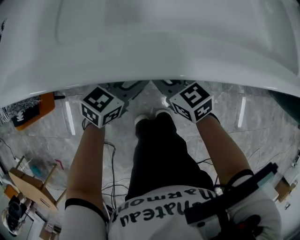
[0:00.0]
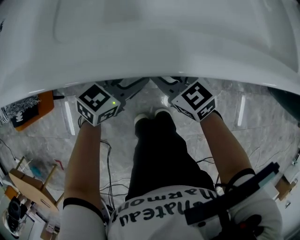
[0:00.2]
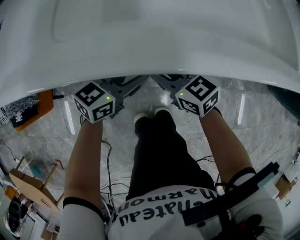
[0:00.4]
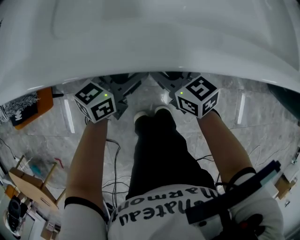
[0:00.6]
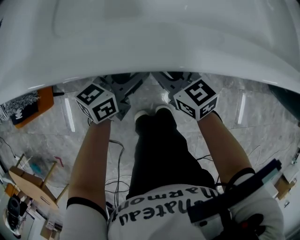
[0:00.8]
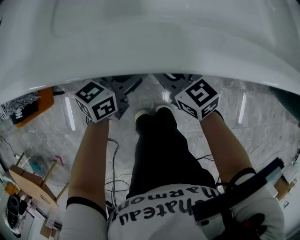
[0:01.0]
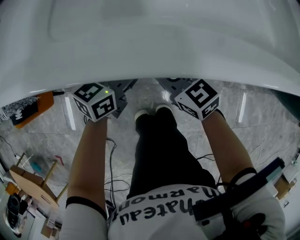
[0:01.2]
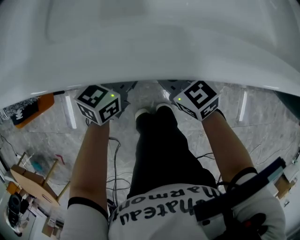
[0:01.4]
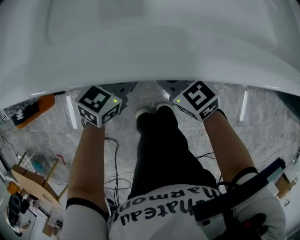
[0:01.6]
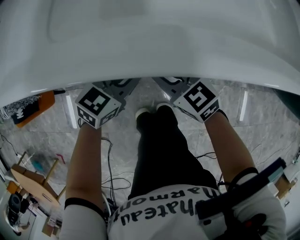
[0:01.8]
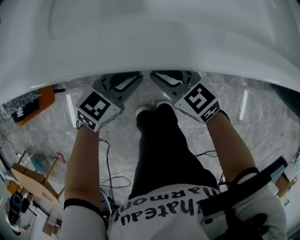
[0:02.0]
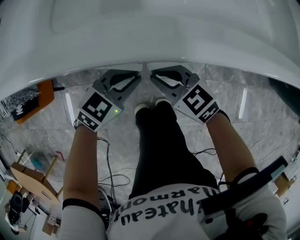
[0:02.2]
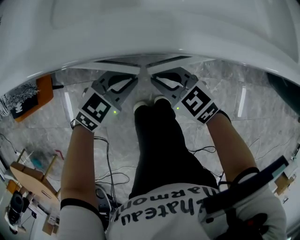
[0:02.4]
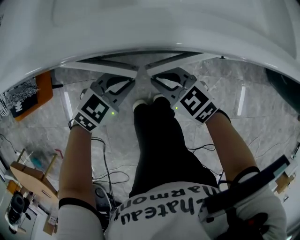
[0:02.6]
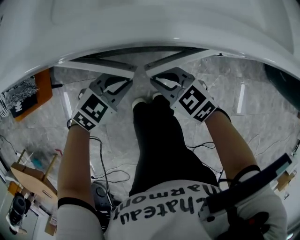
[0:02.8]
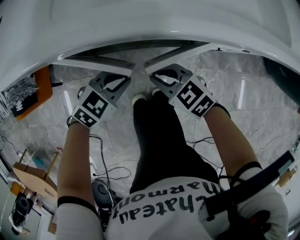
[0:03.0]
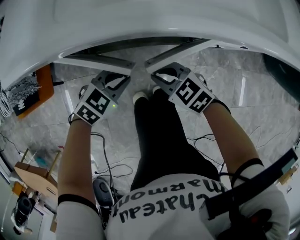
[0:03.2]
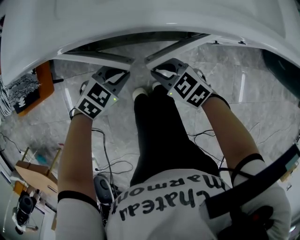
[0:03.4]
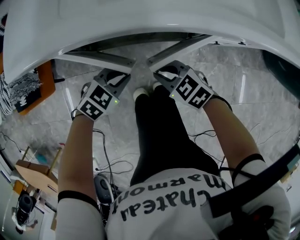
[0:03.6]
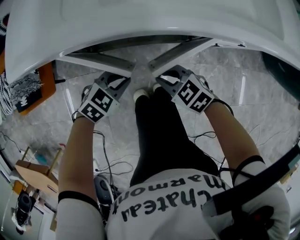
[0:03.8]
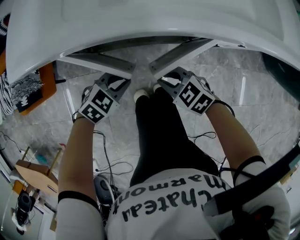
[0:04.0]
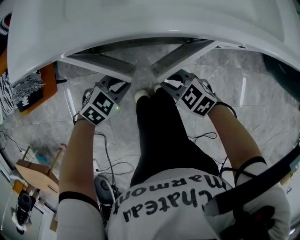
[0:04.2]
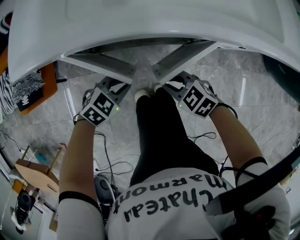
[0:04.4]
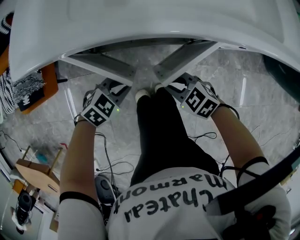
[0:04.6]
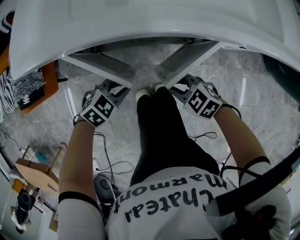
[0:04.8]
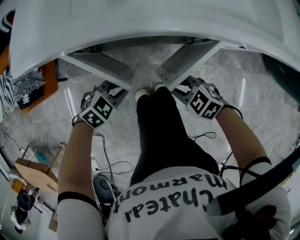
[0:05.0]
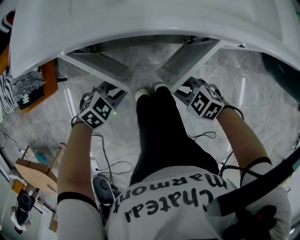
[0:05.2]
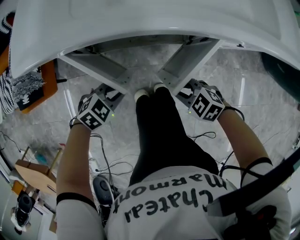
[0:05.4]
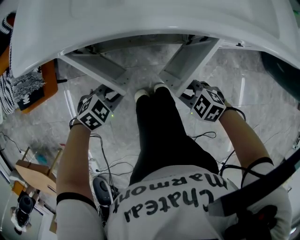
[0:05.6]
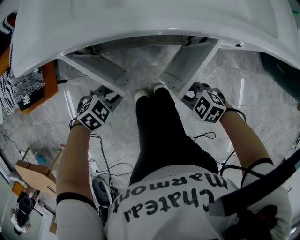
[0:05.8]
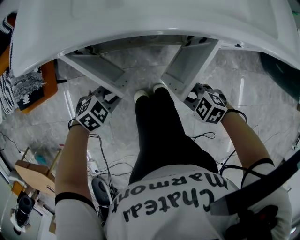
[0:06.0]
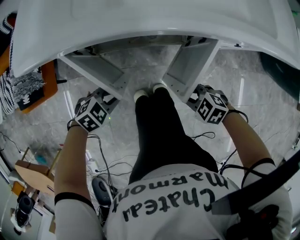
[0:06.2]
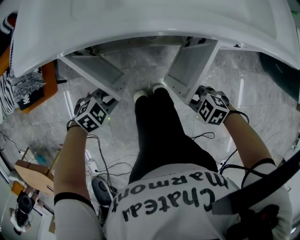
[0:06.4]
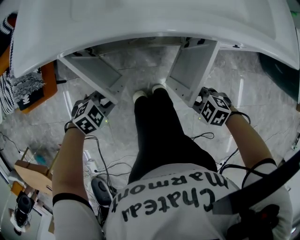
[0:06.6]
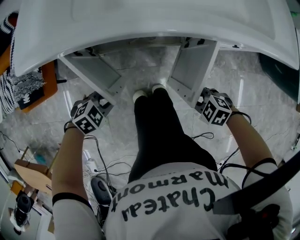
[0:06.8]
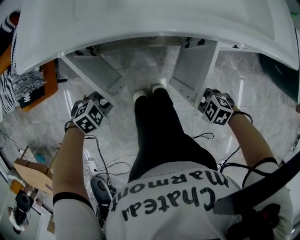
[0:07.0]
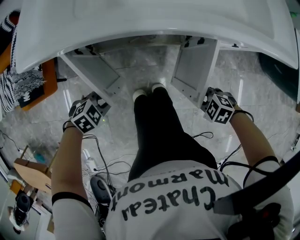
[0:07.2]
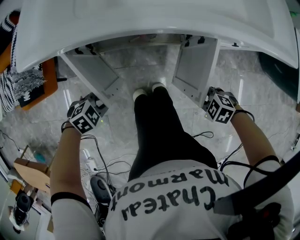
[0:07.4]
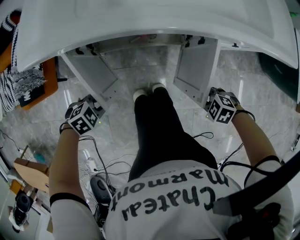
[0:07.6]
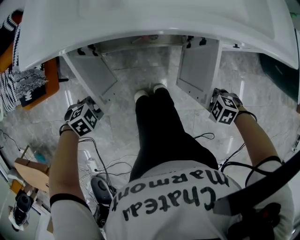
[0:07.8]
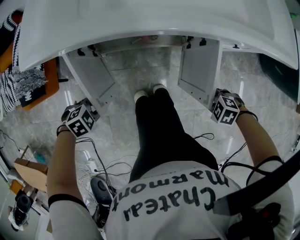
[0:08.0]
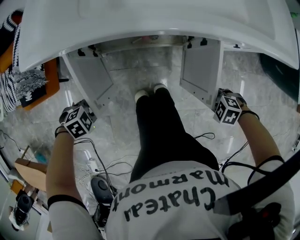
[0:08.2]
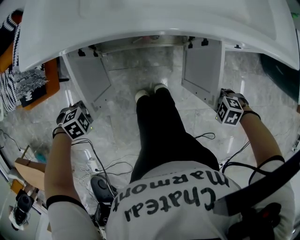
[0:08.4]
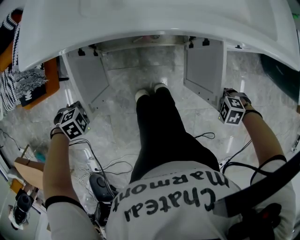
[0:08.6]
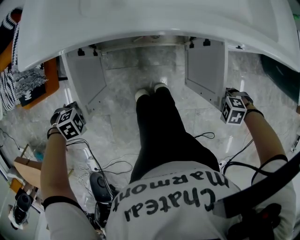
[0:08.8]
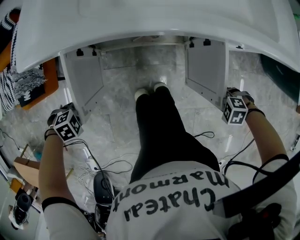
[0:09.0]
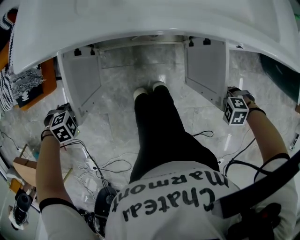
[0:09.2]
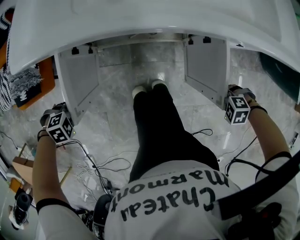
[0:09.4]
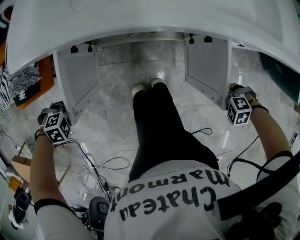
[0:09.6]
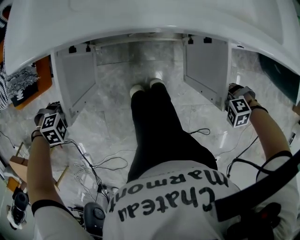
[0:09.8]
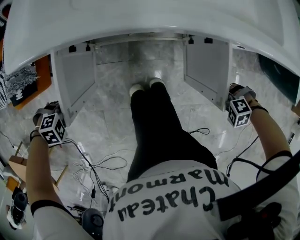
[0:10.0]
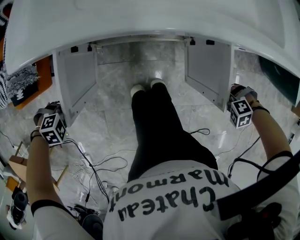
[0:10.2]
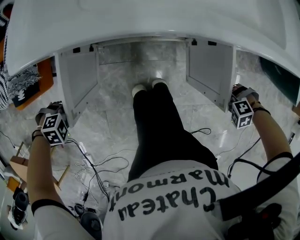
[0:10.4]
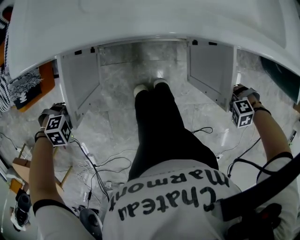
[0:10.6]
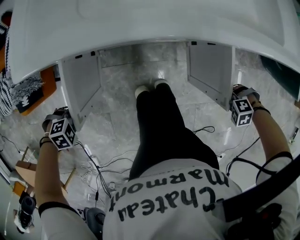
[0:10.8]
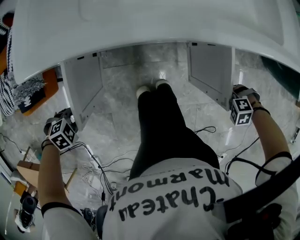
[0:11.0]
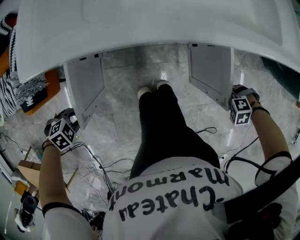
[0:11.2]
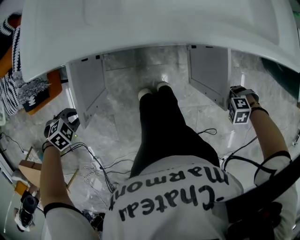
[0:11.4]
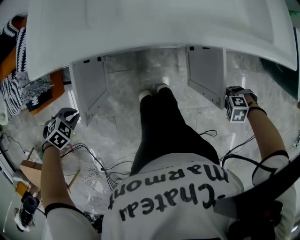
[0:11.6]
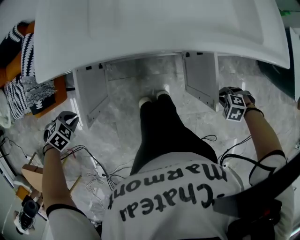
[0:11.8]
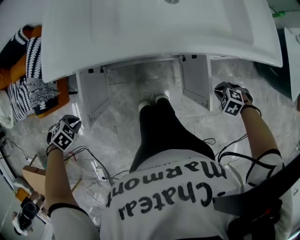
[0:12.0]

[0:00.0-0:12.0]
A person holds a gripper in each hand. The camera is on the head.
0:00.0 to 0:01.6: The left gripper closes up.
0:01.6 to 0:03.0: The left gripper changes place by roughly 10 cm, and changes its angle by roughly 30 degrees, while the right gripper ends up approximately 10 cm from where it was.
0:03.0 to 0:04.4: The right gripper changes place by about 5 cm.
0:04.4 to 0:06.0: The right gripper ends up some 10 cm from where it was. Meanwhile the left gripper moves roughly 5 cm.
0:06.0 to 0:07.6: The left gripper changes place by about 10 cm. Meanwhile the right gripper ends up some 10 cm from where it was.
0:07.6 to 0:09.0: The right gripper shifts by some 5 cm; the left gripper ends up approximately 10 cm from where it was.
0:09.0 to 0:10.4: The right gripper rotates some 20 degrees.
0:10.4 to 0:12.0: The right gripper changes place by approximately 10 cm, and swivels approximately 40 degrees. The left gripper travels upward by about 10 cm, and rotates about 30 degrees.

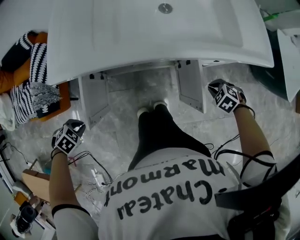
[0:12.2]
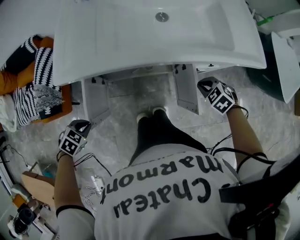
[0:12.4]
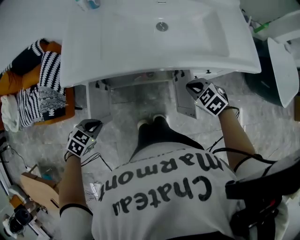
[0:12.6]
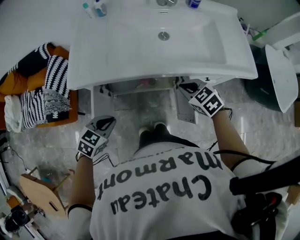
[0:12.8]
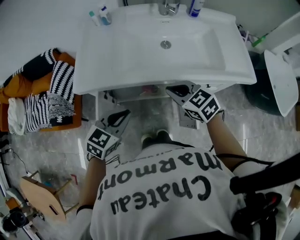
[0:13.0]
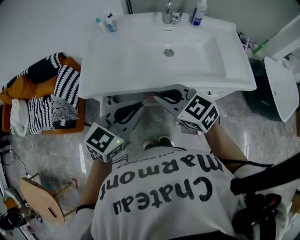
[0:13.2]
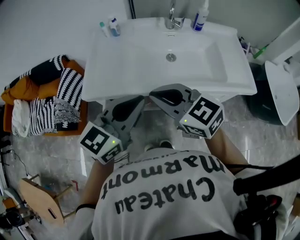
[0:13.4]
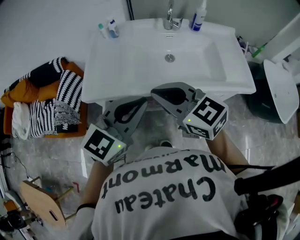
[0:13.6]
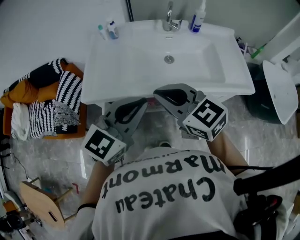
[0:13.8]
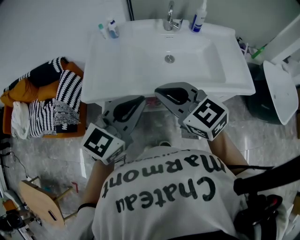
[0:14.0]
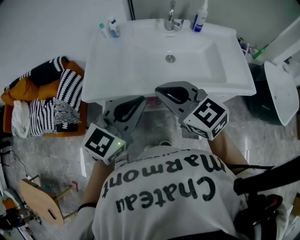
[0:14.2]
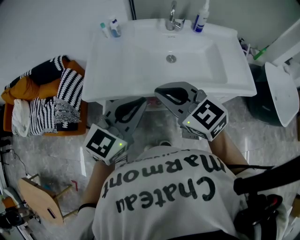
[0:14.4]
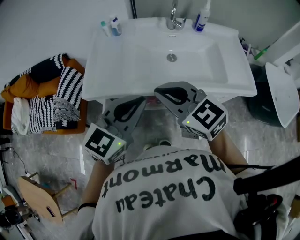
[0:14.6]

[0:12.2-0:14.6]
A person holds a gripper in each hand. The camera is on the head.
0:12.2 to 0:13.4: Both grippers travel together upward, approximately 35 cm. The right gripper tilts its fingers about 60 degrees upward. Meanwhile the left gripper points its fingers about 80 degrees further upward.
0:13.4 to 0:14.6: The grippers move only a little.

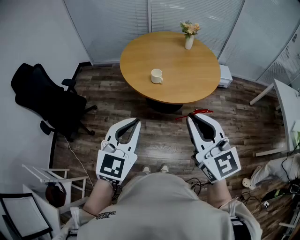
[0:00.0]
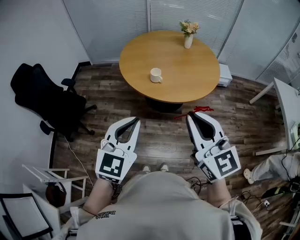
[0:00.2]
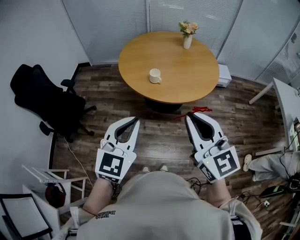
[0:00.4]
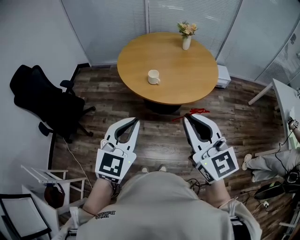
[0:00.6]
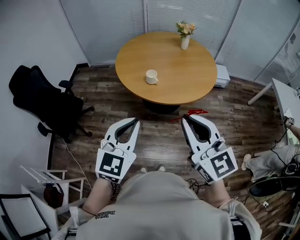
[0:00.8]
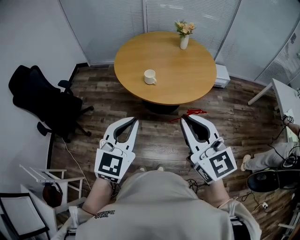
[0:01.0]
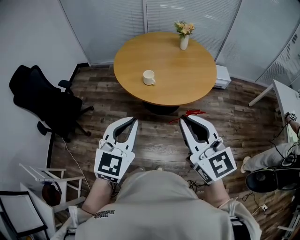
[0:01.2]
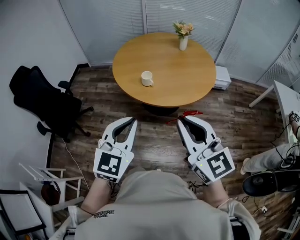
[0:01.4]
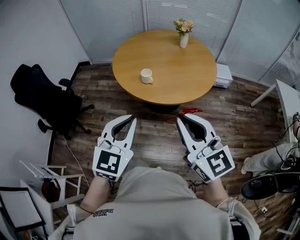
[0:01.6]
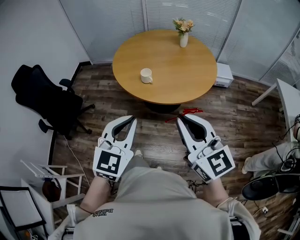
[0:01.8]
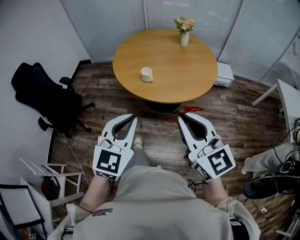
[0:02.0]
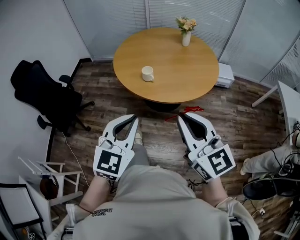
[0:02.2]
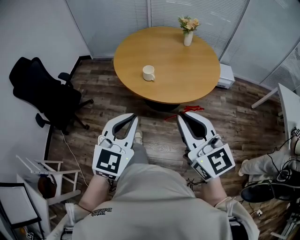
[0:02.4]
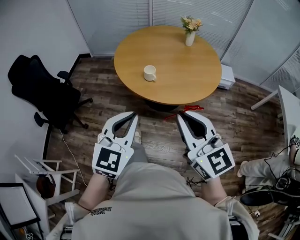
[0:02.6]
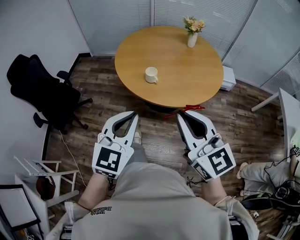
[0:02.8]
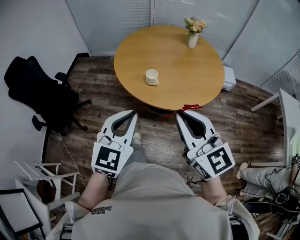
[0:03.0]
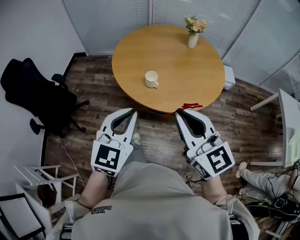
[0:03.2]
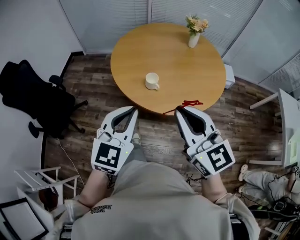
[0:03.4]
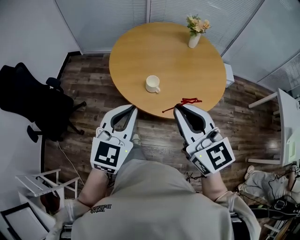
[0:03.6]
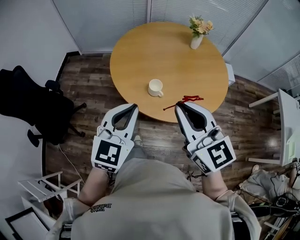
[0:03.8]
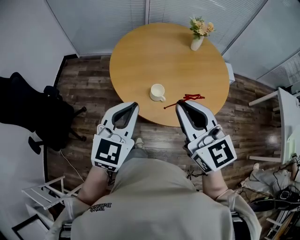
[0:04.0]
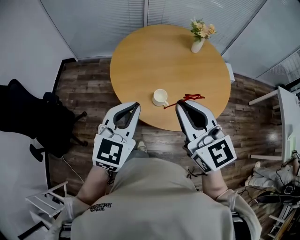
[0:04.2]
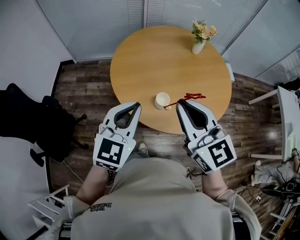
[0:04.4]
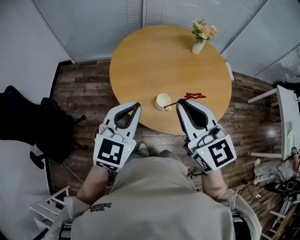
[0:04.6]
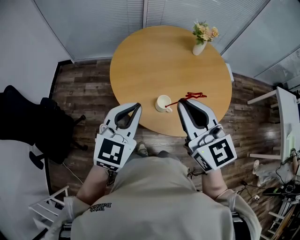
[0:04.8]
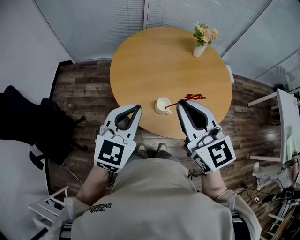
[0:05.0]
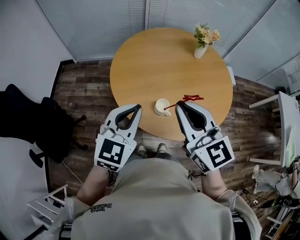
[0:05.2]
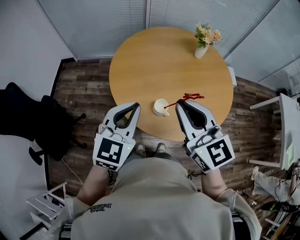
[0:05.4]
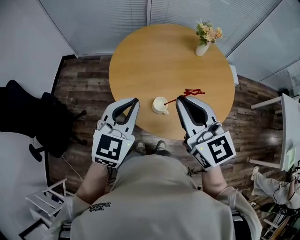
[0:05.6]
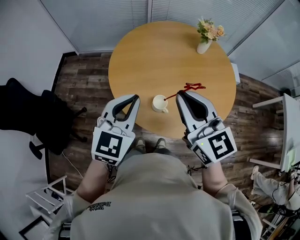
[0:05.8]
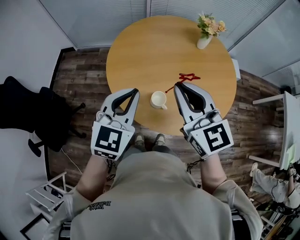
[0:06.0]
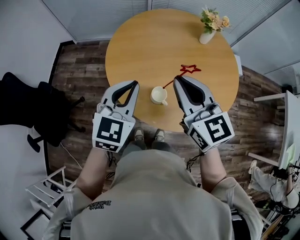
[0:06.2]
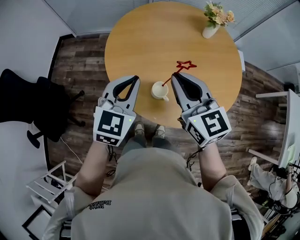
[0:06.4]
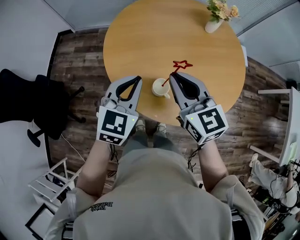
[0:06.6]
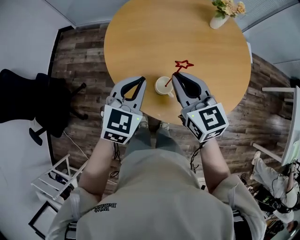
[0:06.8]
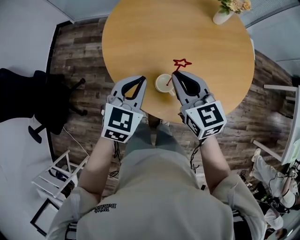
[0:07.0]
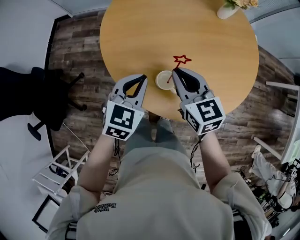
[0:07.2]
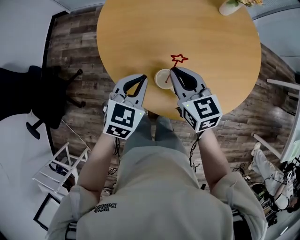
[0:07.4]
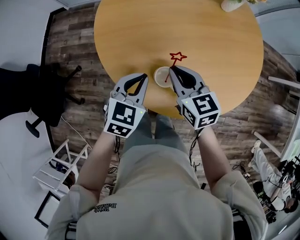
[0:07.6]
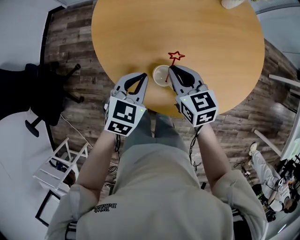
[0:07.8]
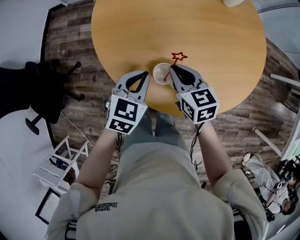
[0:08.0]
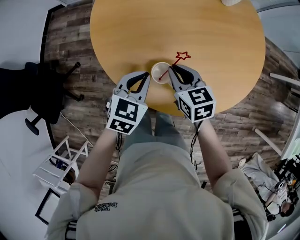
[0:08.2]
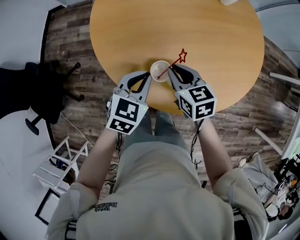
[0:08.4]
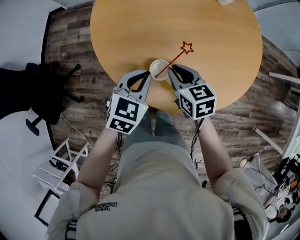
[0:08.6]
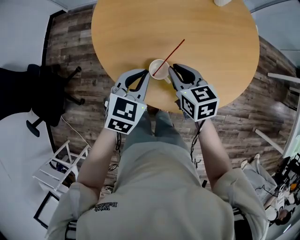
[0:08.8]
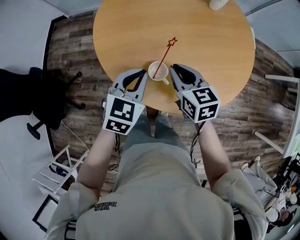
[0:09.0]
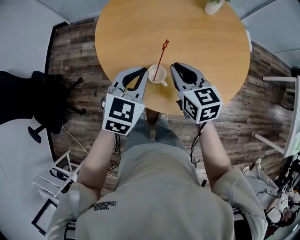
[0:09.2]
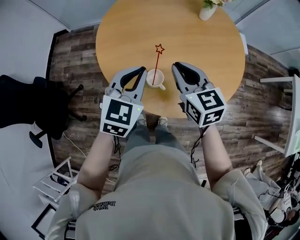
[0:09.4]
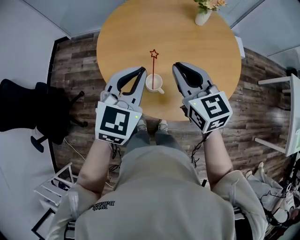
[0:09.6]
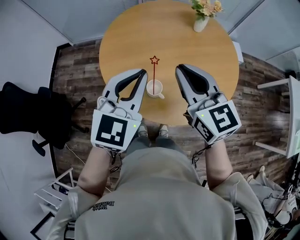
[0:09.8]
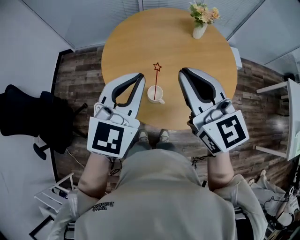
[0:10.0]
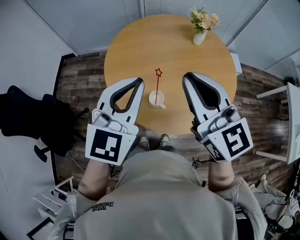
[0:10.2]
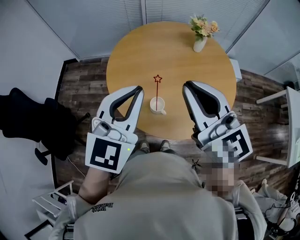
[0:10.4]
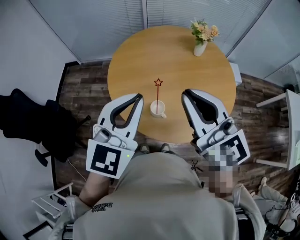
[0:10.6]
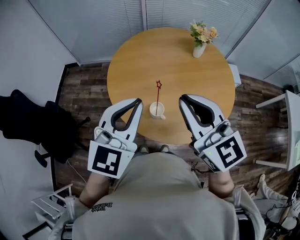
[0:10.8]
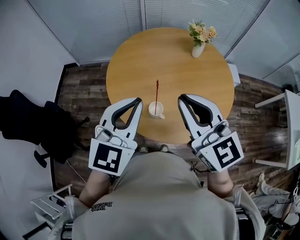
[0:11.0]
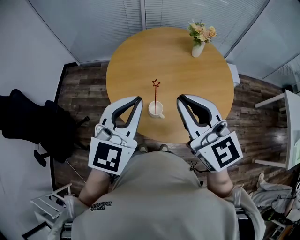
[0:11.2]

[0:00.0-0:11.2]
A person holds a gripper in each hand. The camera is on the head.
0:00.0 to 0:01.6: The two grippers go about 10 cm to the right.
0:01.6 to 0:03.2: The grippers both shift forward by roughly 15 cm.
0:03.2 to 0:04.8: The grippers both shift forward and to the left by some 25 cm.
0:04.8 to 0:06.4: The two grippers go approximately 10 cm forward and downward.
0:06.4 to 0:08.0: The grippers both shift downward by roughly 25 cm. The right gripper rotates about 30 degrees; the left gripper swivels about 20 degrees.
0:08.0 to 0:09.6: The two grippers go some 20 cm upward. The right gripper swivels some 20 degrees, while the left gripper turns by approximately 20 degrees.
0:09.6 to 0:11.2: The grippers both shift upward and backward by roughly 15 cm.
